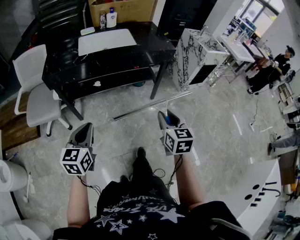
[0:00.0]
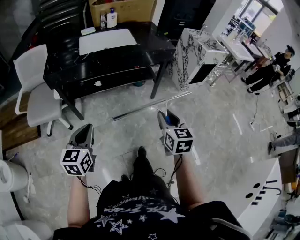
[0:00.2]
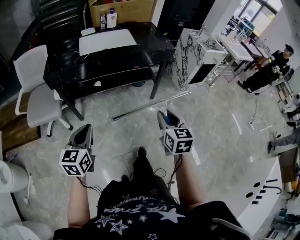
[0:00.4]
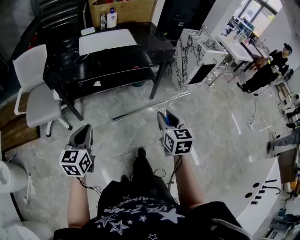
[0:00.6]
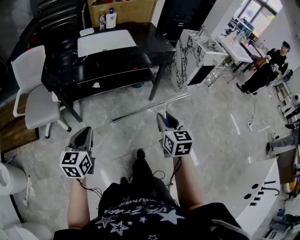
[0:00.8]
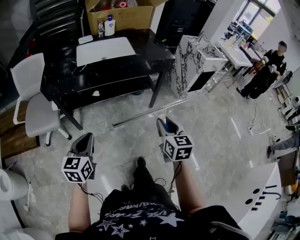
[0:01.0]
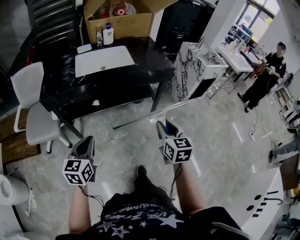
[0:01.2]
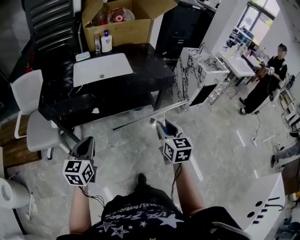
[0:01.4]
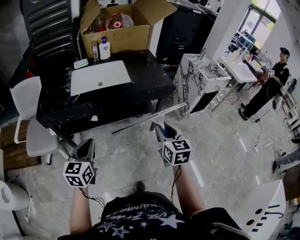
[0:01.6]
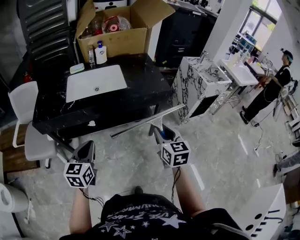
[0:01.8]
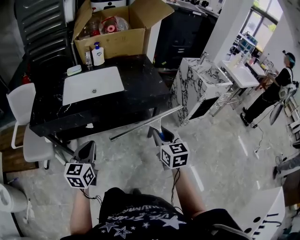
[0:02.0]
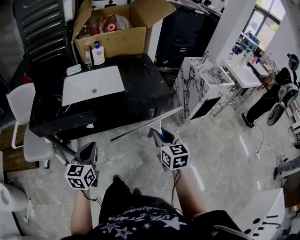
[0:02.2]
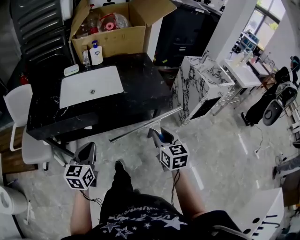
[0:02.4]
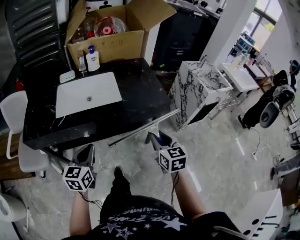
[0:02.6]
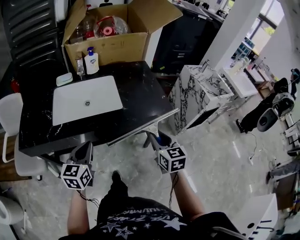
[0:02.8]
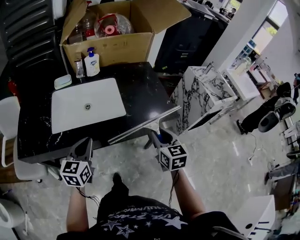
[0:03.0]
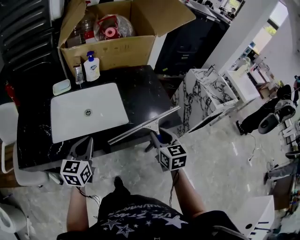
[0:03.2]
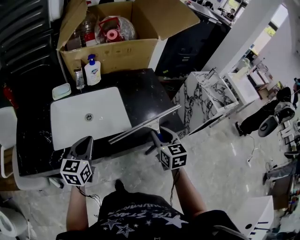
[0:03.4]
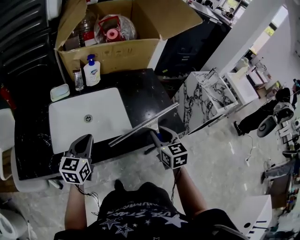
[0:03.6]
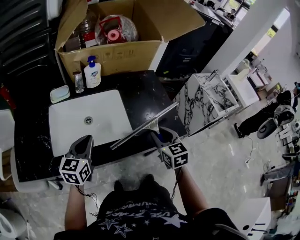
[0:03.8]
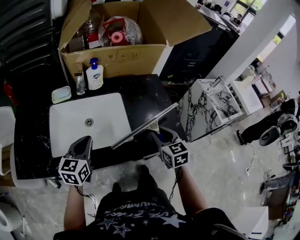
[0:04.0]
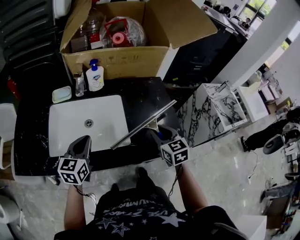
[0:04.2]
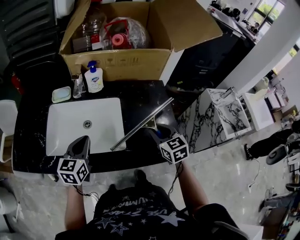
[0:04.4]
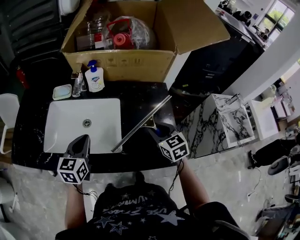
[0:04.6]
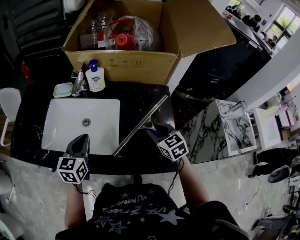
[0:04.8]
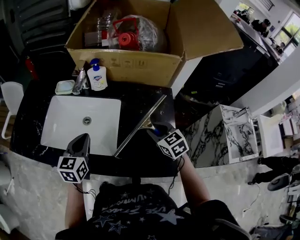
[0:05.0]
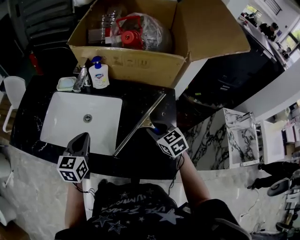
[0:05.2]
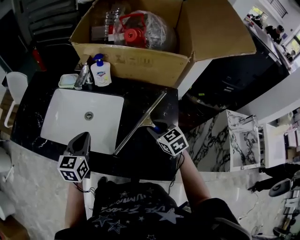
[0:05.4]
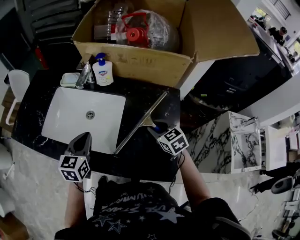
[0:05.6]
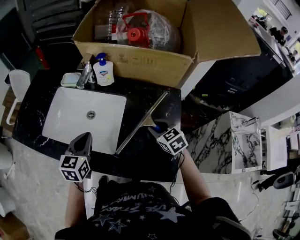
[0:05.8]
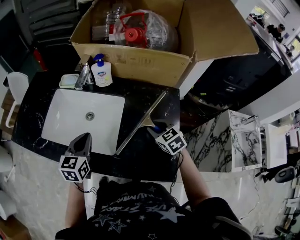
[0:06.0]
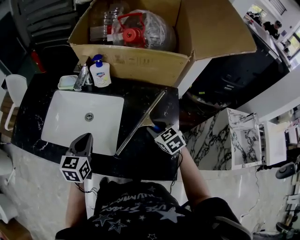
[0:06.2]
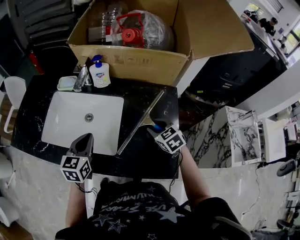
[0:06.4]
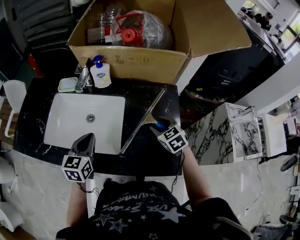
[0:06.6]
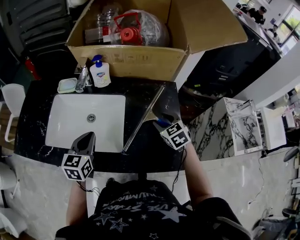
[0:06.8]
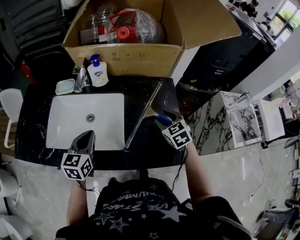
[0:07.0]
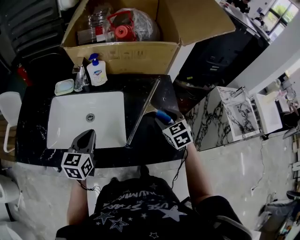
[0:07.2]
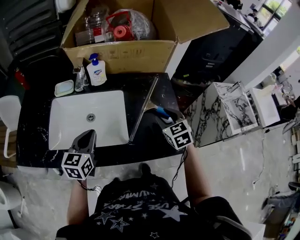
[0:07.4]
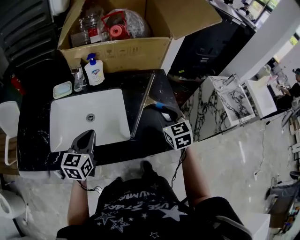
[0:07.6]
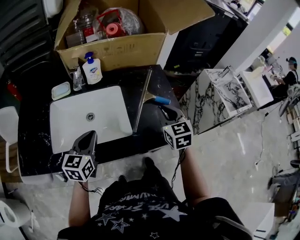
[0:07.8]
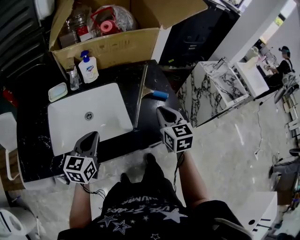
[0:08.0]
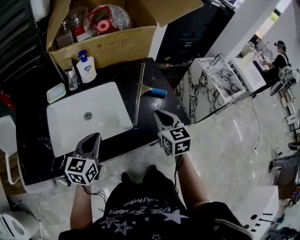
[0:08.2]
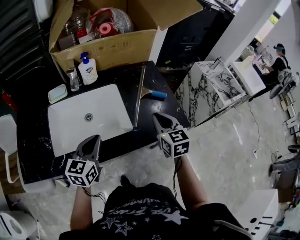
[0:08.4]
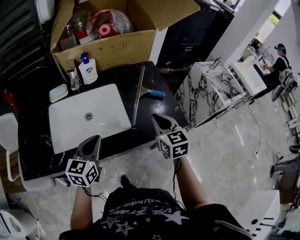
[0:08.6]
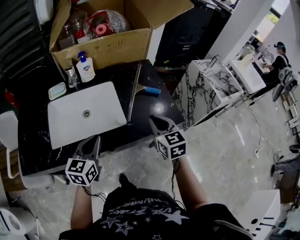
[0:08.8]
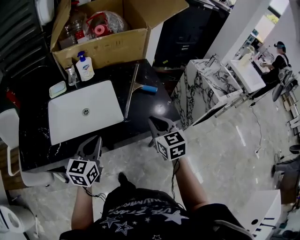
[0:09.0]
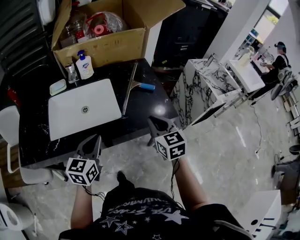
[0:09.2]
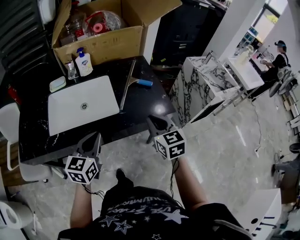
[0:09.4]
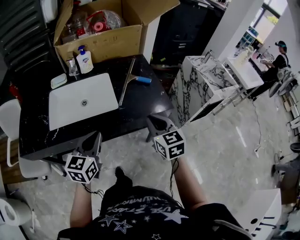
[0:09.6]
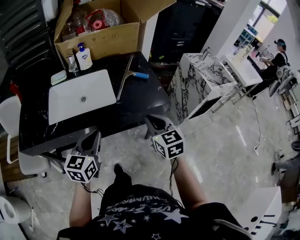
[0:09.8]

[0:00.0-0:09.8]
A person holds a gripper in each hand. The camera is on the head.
0:00.0 to 0:01.4: Both grippers move forward, about 15 cm.
0:01.4 to 0:02.8: The two grippers go about 30 cm forward.
0:02.8 to 0:04.2: Both grippers travel together forward, some 30 cm.
0:04.2 to 0:05.6: The left gripper shifts by some 10 cm, and swivels some 20 degrees. Meanwhile the right gripper shifts by about 15 cm, and rotates some 40 degrees.
0:05.6 to 0:07.0: There are only small adjustments of the grippers.
0:07.0 to 0:08.4: The right gripper moves backward and upward, approximately 20 cm, changes its angle by approximately 40 degrees, and closes its fingers; the left gripper moves backward, some 10 cm, and turns by some 20 degrees.
0:08.4 to 0:09.8: The left gripper travels backward and to the right by about 20 cm. The right gripper moves backward, roughly 20 cm.

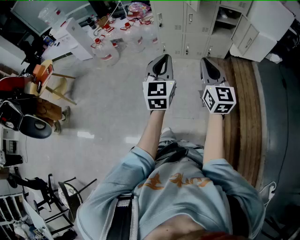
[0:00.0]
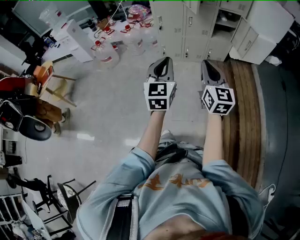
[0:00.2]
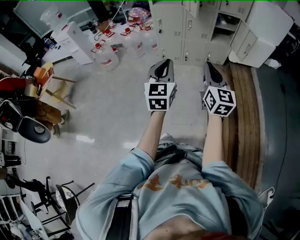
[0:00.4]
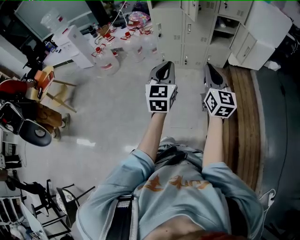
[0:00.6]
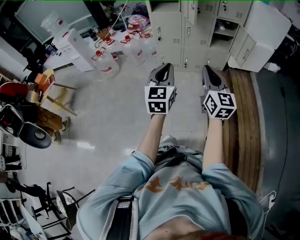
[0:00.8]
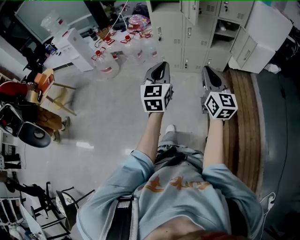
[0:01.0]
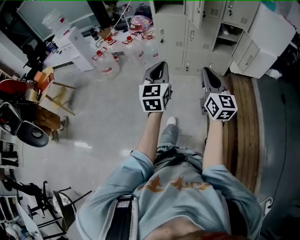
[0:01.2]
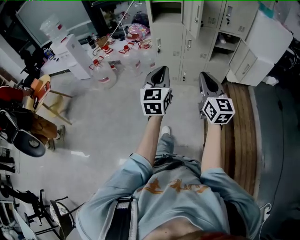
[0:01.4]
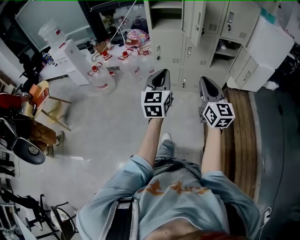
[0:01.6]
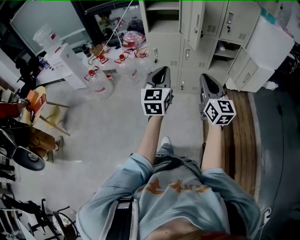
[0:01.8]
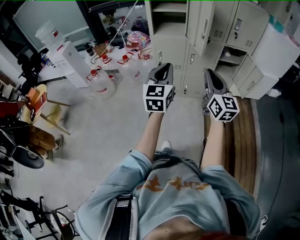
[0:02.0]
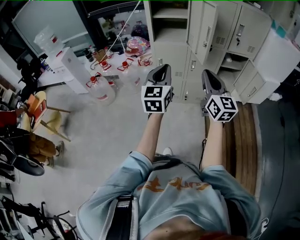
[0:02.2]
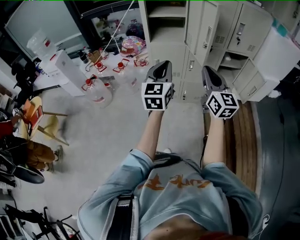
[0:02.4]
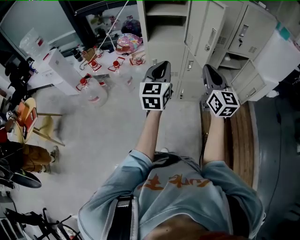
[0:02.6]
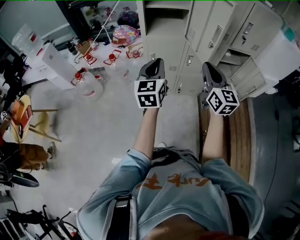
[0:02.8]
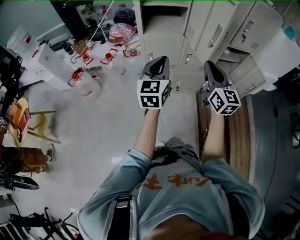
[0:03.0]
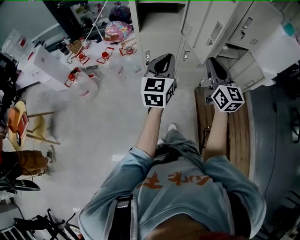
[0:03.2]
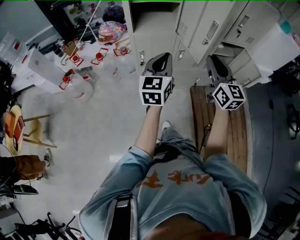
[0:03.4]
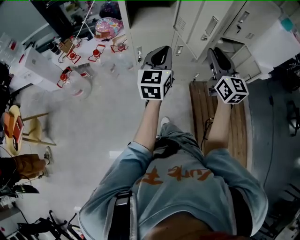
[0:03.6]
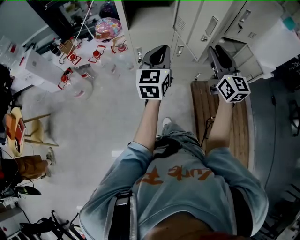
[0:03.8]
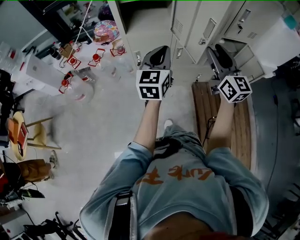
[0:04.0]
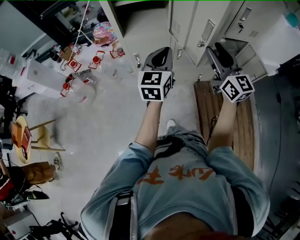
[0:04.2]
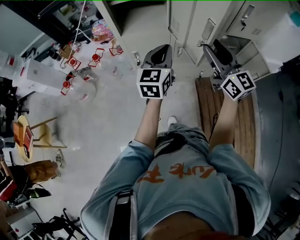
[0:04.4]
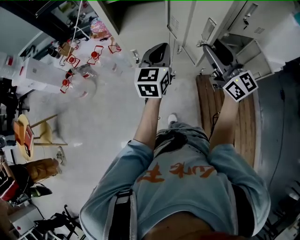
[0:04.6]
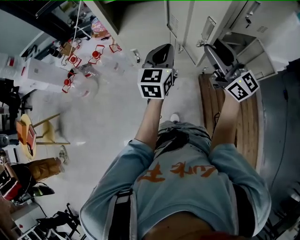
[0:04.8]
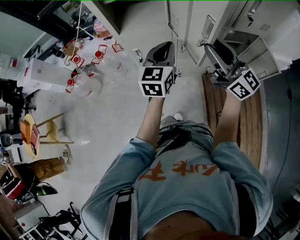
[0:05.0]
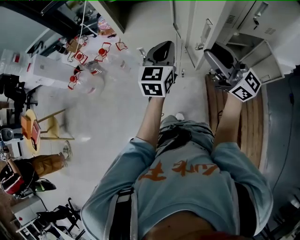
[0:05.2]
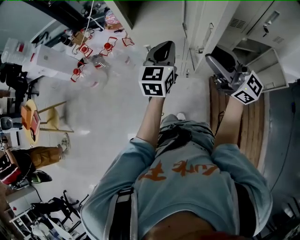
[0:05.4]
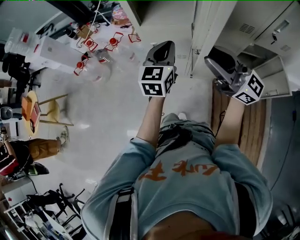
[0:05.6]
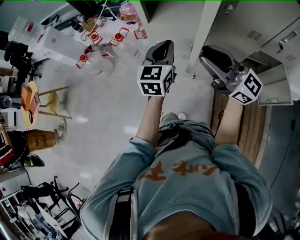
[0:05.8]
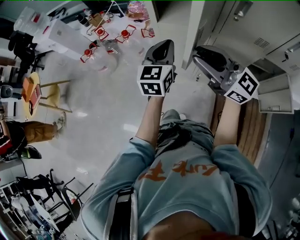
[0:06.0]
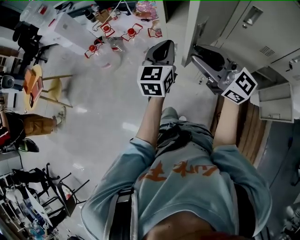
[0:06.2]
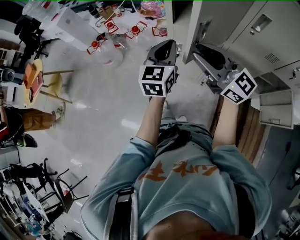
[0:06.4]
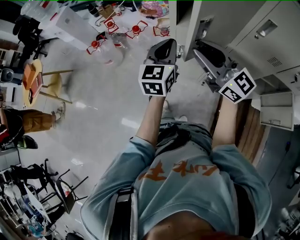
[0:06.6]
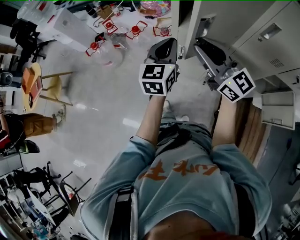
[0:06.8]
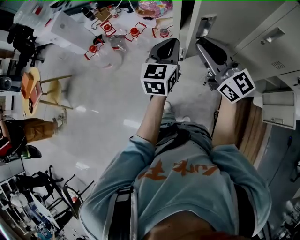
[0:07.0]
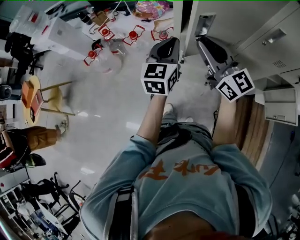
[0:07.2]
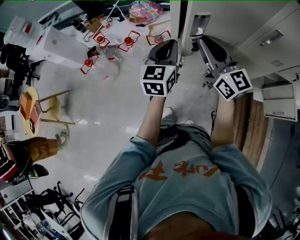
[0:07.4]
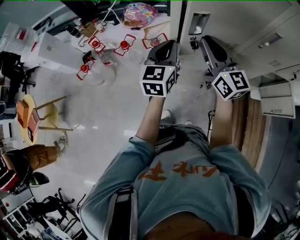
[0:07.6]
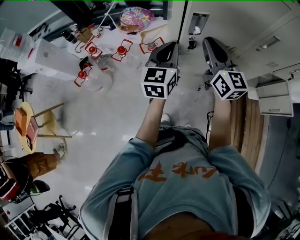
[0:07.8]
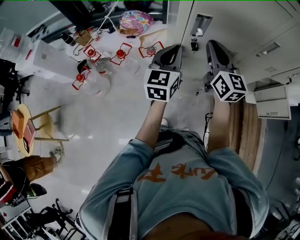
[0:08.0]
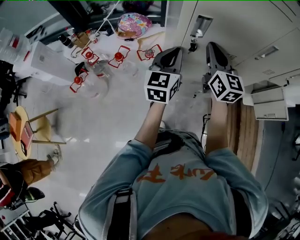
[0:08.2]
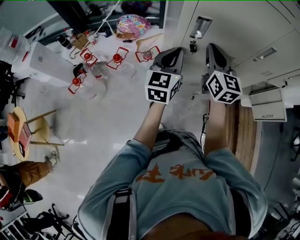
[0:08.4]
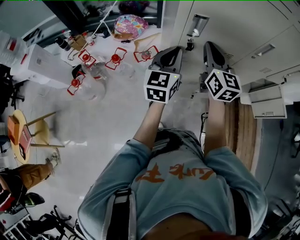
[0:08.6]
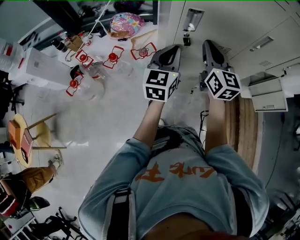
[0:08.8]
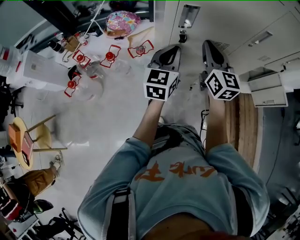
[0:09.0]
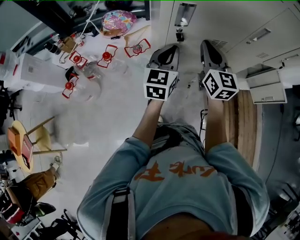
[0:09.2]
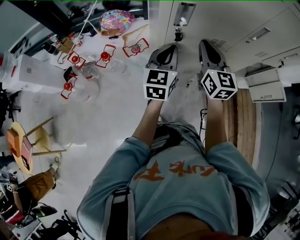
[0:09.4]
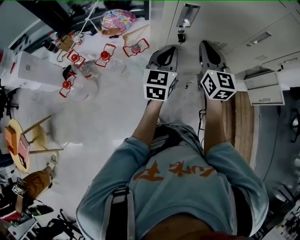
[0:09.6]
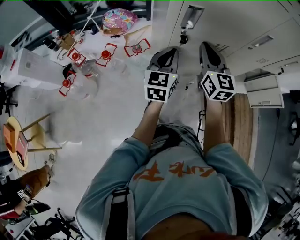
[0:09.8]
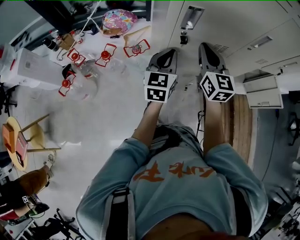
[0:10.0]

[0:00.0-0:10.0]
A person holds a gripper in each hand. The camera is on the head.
0:00.0 to 0:01.4: The grippers both shift forward by some 10 cm.
0:01.4 to 0:02.8: The two grippers go about 35 cm forward.
0:02.8 to 0:04.2: The grippers both shift forward and to the right by about 15 cm. The right gripper opens its fingers.
0:04.2 to 0:05.8: The right gripper ends up about 15 cm from where it was, and changes its angle by approximately 50 degrees; the left gripper shifts by roughly 10 cm.
0:05.8 to 0:07.2: Both grippers travel together forward and to the left, approximately 15 cm.
0:07.2 to 0:08.6: The right gripper shifts by about 10 cm, and turns by about 40 degrees, while the left gripper shifts by approximately 5 cm.
0:08.6 to 0:10.0: The left gripper is displaced downward by approximately 5 cm.

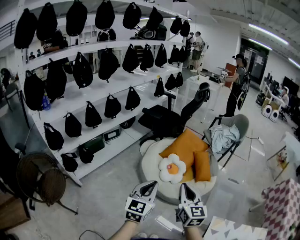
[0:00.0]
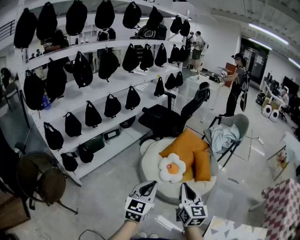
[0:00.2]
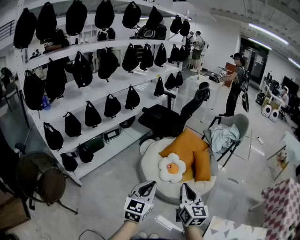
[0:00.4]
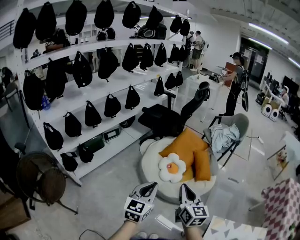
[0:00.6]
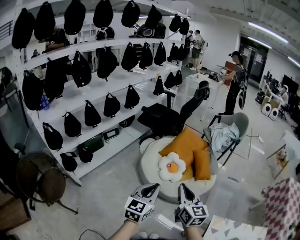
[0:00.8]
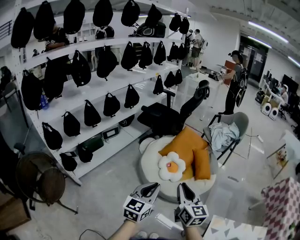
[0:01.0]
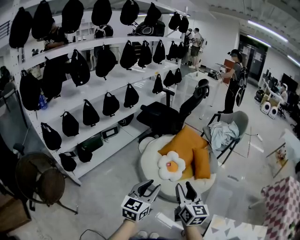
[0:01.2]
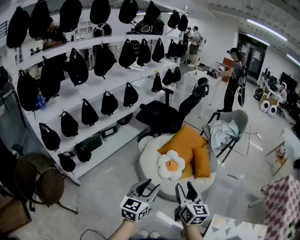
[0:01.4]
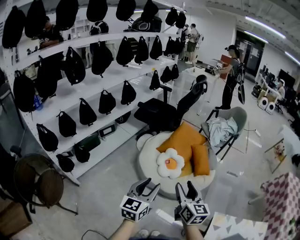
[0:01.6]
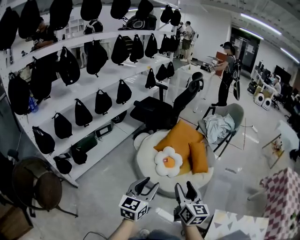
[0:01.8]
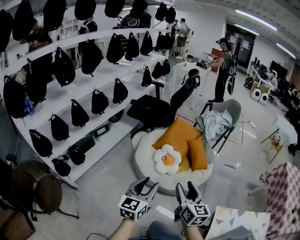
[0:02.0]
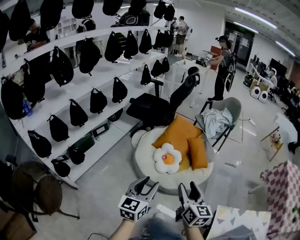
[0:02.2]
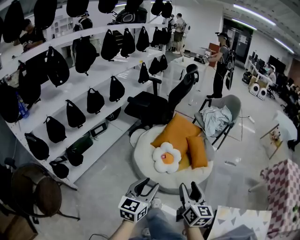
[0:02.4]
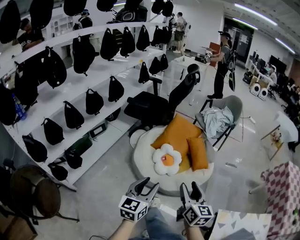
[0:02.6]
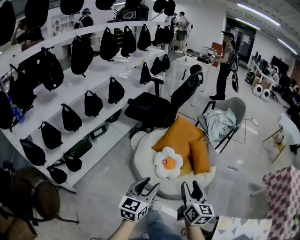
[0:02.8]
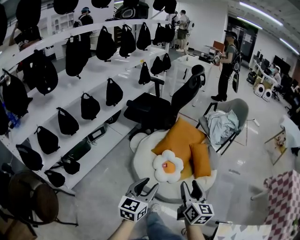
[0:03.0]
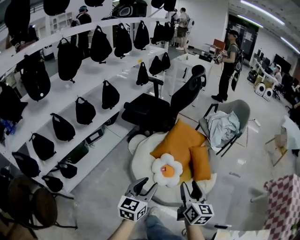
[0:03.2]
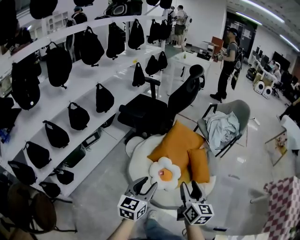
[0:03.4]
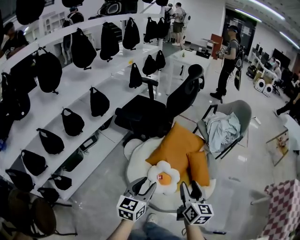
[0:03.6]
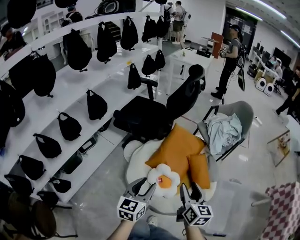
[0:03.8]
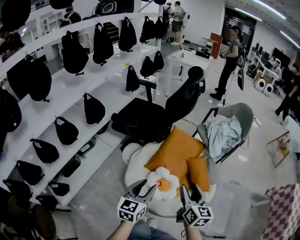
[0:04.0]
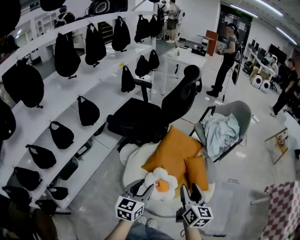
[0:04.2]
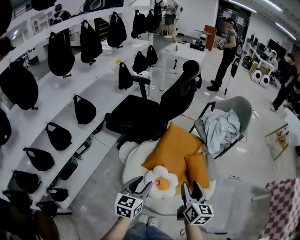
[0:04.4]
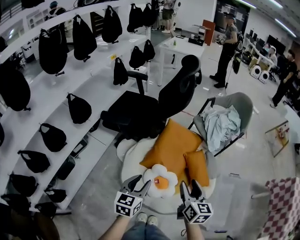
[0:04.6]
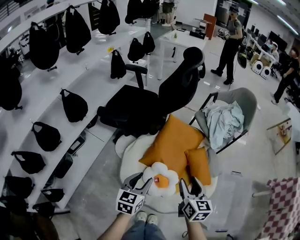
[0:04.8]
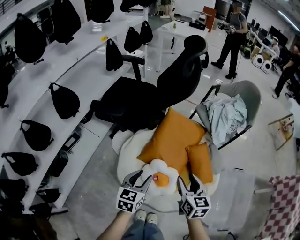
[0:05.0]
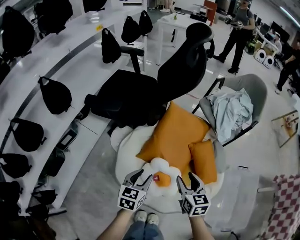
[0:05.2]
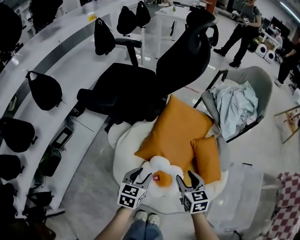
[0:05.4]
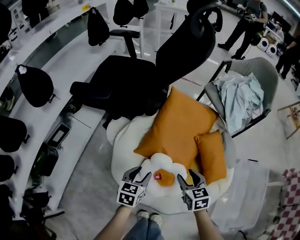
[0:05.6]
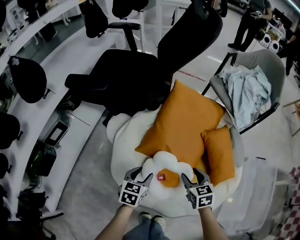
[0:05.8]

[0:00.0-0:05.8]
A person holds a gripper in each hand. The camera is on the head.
0:00.0 to 0:01.4: The right gripper opens. Meanwhile the left gripper opens.
0:01.4 to 0:02.8: Both grippers move forward, roughly 10 cm.
0:02.8 to 0:04.4: Both grippers move forward, some 35 cm.
0:04.4 to 0:05.8: Both grippers travel together downward, some 40 cm. The left gripper changes its angle by about 20 degrees, while the right gripper swivels approximately 30 degrees.
